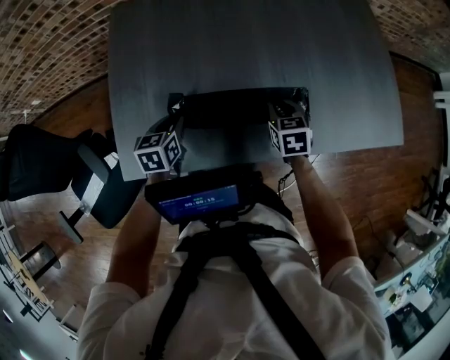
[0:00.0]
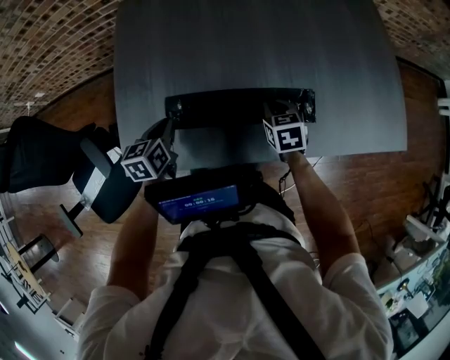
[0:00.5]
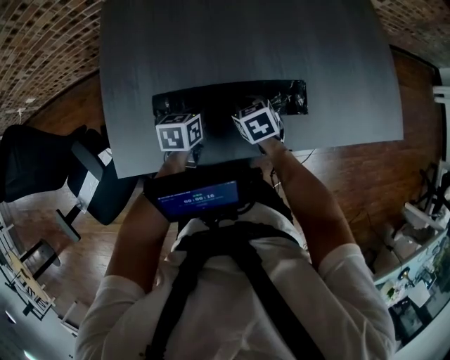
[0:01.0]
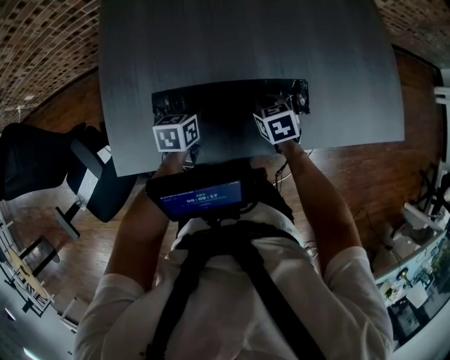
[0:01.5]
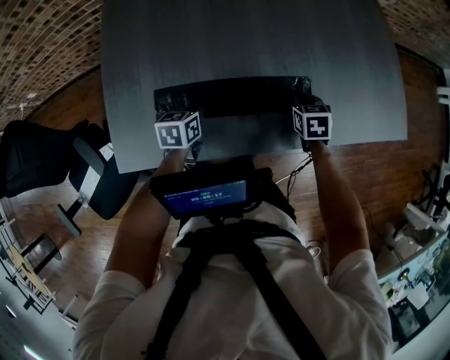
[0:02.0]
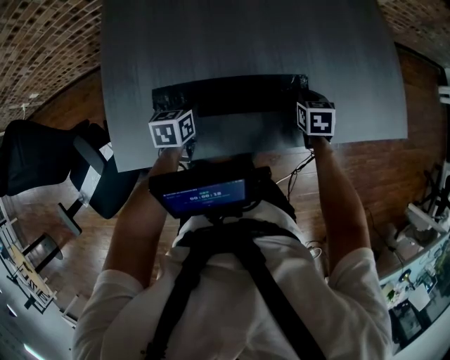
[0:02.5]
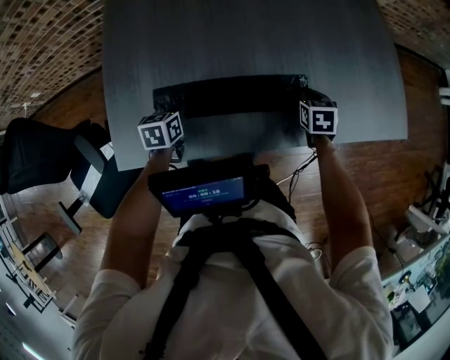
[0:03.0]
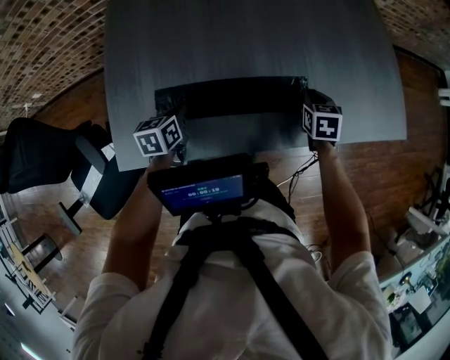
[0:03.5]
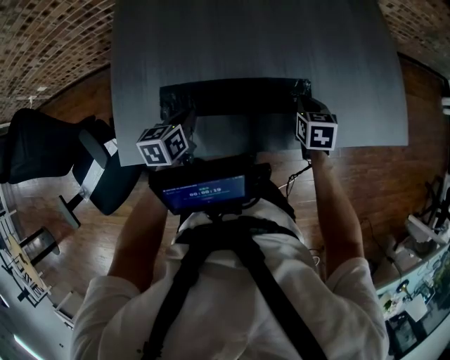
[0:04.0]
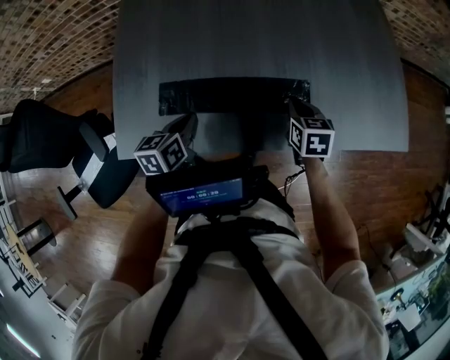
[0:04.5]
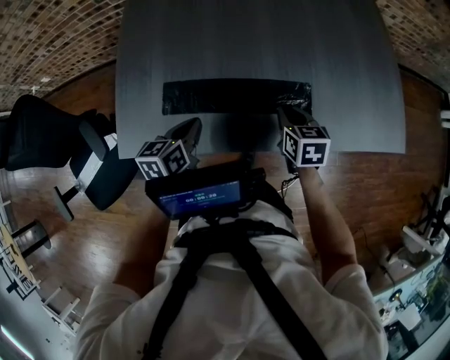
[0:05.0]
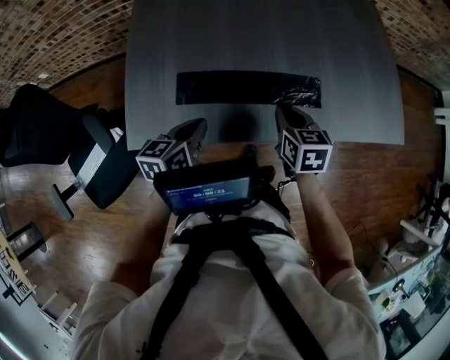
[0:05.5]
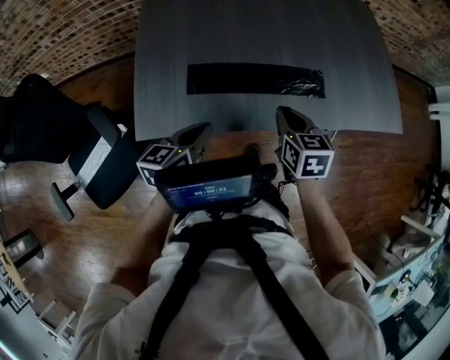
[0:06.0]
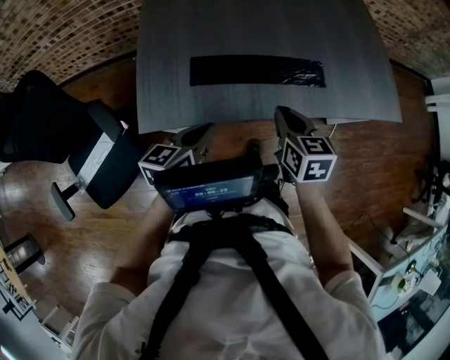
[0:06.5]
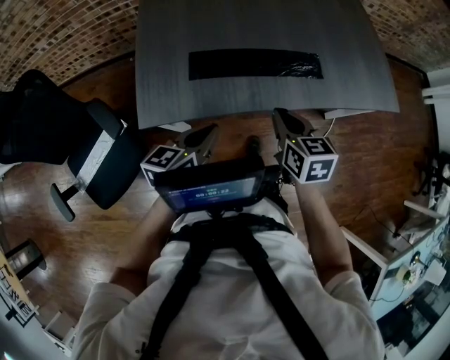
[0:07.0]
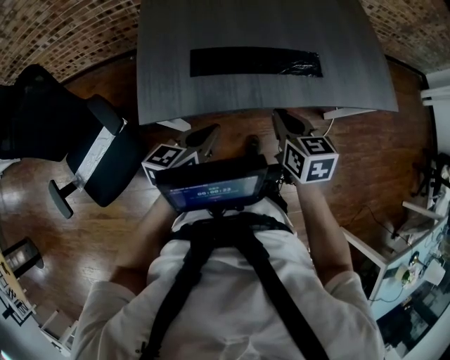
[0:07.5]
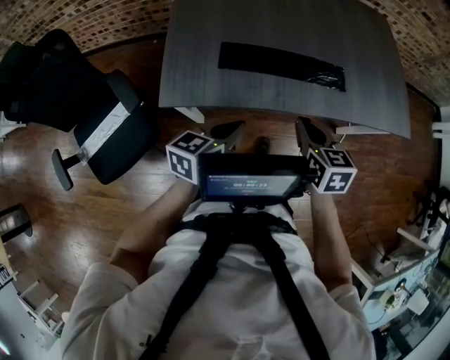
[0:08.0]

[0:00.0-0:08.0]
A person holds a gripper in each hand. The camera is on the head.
0:00.0 to 0:02.0: The two grippers go about 10 cm to the right and downward. The left gripper closes its fingers.
0:02.0 to 0:04.0: The left gripper moves upward, about 5 cm.
0:04.0 to 0:06.0: The left gripper heads backward and upward, covering about 20 cm; the right gripper is displaced to the left, backward and upward by roughly 25 cm.
0:06.0 to 0:08.0: Both grippers travel together backward, some 10 cm.

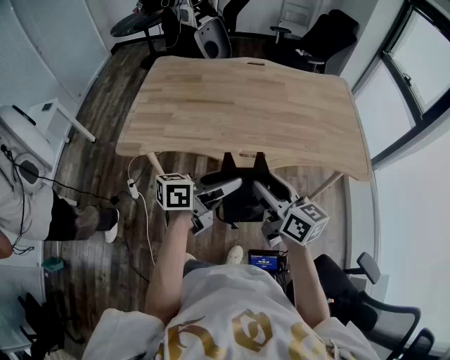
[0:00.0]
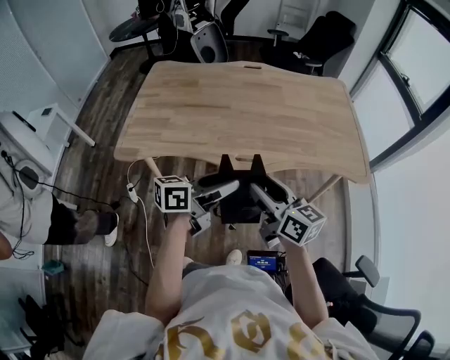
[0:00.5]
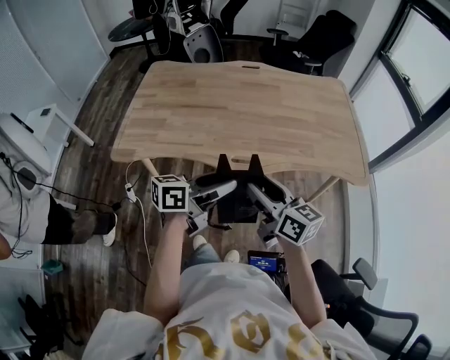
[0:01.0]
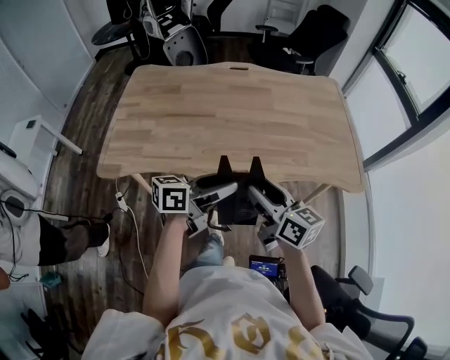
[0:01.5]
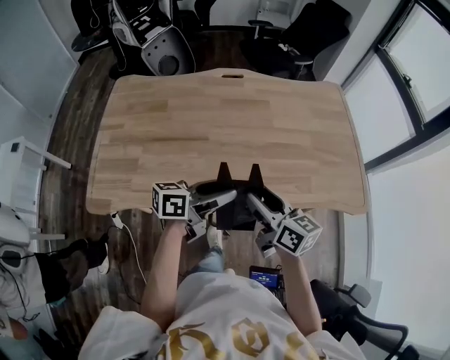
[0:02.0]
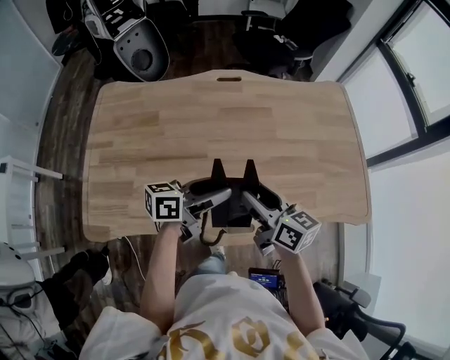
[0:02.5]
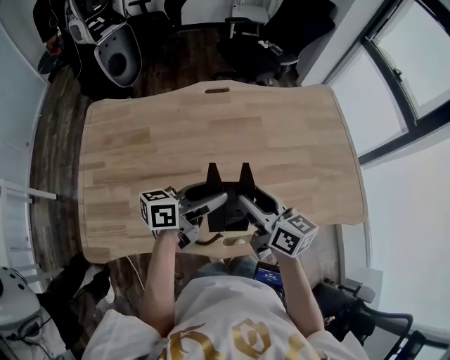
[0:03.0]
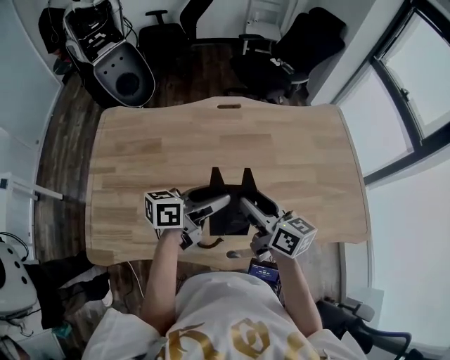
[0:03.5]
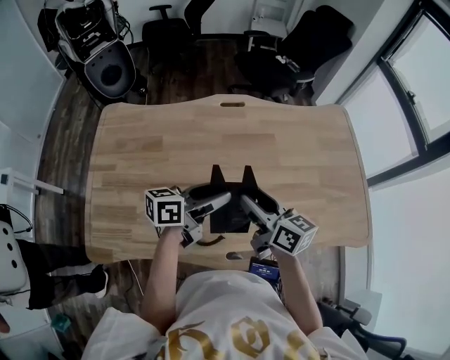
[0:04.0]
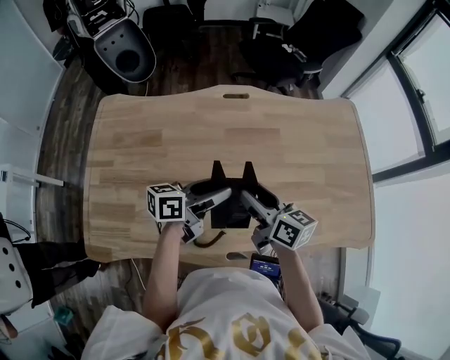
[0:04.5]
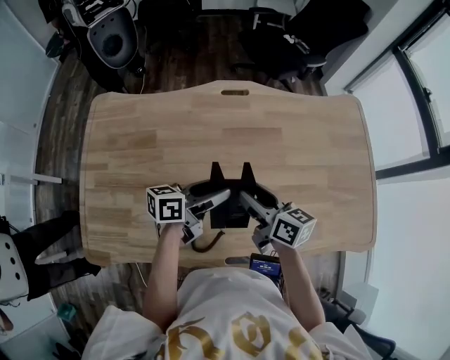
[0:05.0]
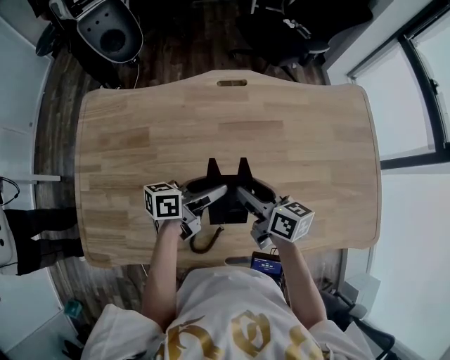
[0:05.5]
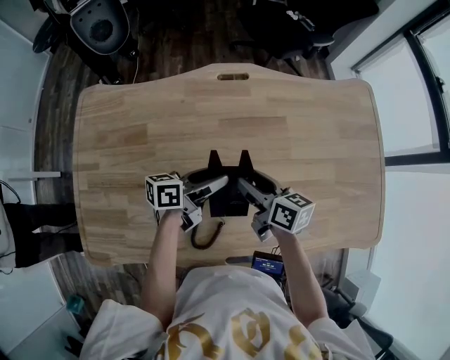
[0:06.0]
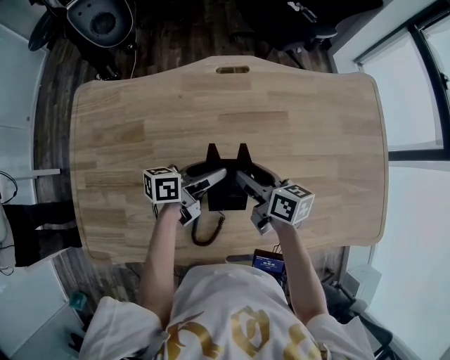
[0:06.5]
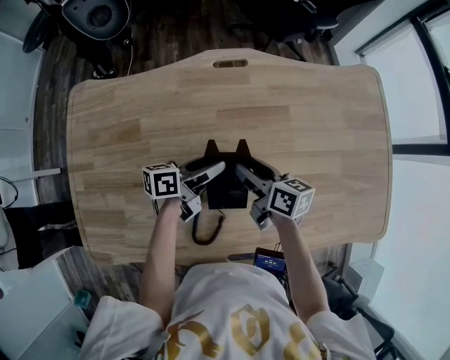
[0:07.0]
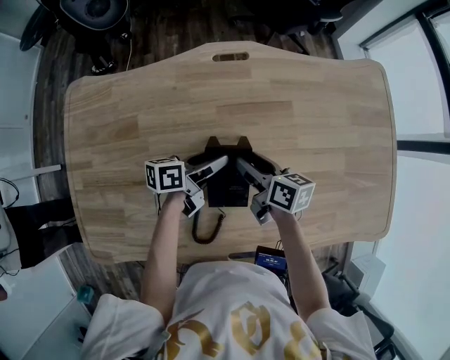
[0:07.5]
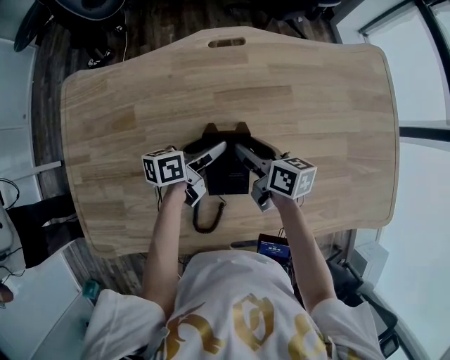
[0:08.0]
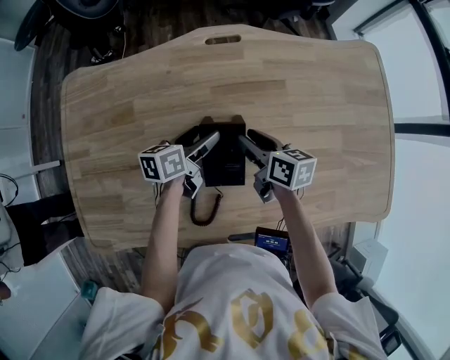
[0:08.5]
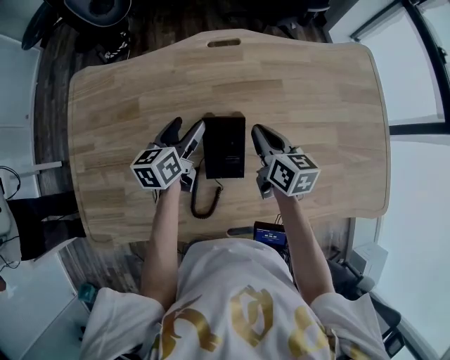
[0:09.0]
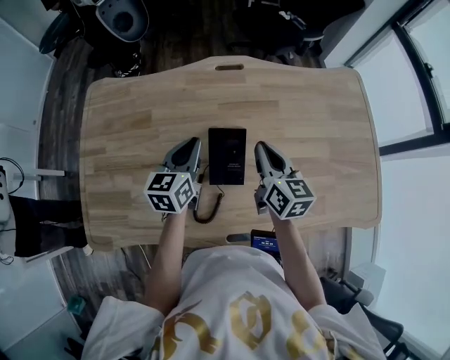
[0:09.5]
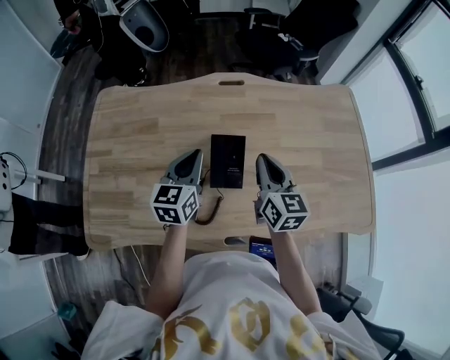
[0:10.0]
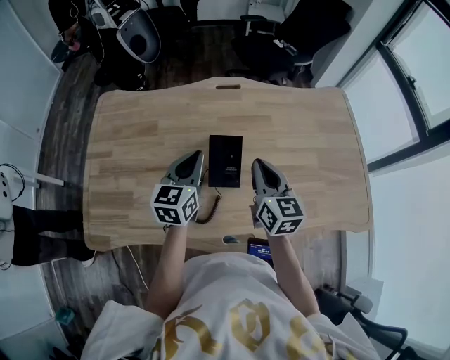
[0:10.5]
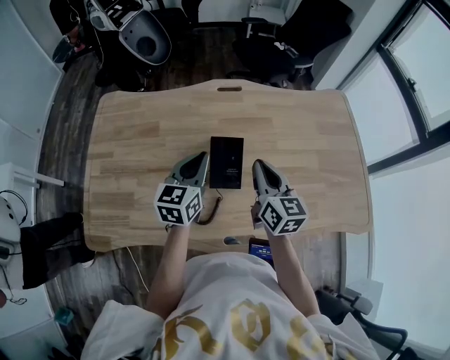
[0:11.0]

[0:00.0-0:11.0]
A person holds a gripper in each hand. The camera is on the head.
0:00.0 to 0:02.0: The two grippers go about 25 cm forward.
0:02.0 to 0:03.5: Both grippers travel together forward and to the left, about 20 cm.
0:03.5 to 0:05.5: The grippers both shift forward and downward by approximately 15 cm.
0:05.5 to 0:07.5: The grippers both shift downward and forward by roughly 10 cm.
0:07.5 to 0:09.0: The left gripper is displaced upward and to the left by some 10 cm, and turns by roughly 40 degrees, while the right gripper goes roughly 5 cm upward, turns by roughly 20 degrees, and closes its fingers.
0:09.0 to 0:11.0: Both grippers move upward and backward, roughly 20 cm. The left gripper turns by some 20 degrees, and closes; the right gripper turns by roughly 20 degrees.

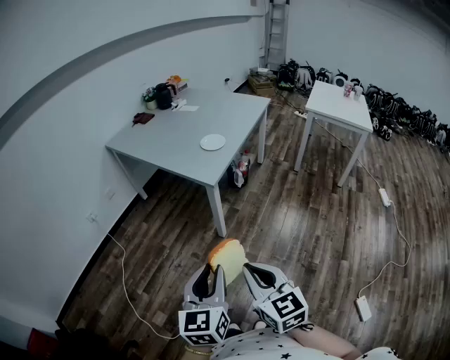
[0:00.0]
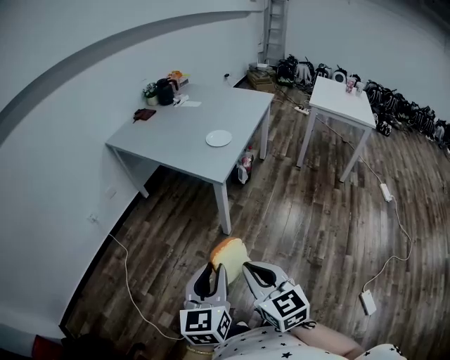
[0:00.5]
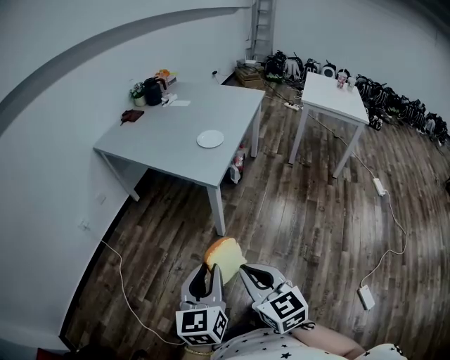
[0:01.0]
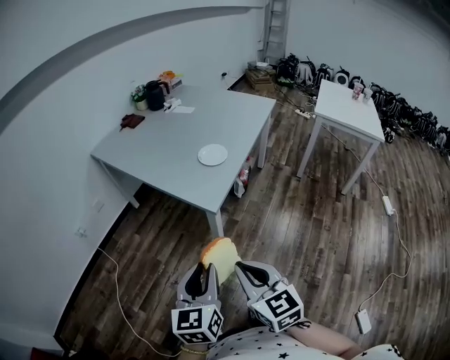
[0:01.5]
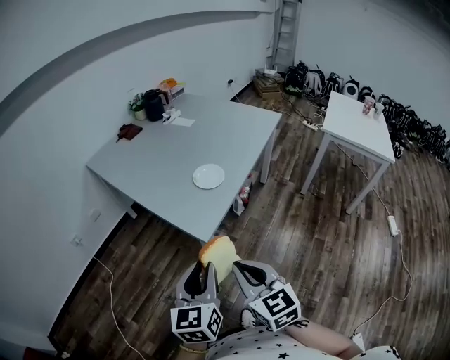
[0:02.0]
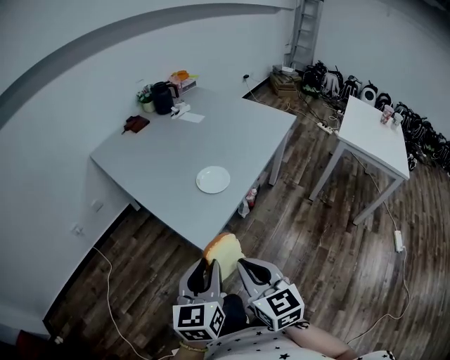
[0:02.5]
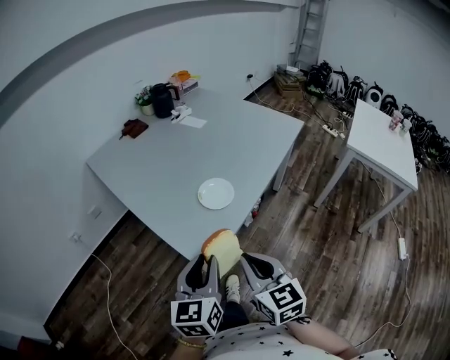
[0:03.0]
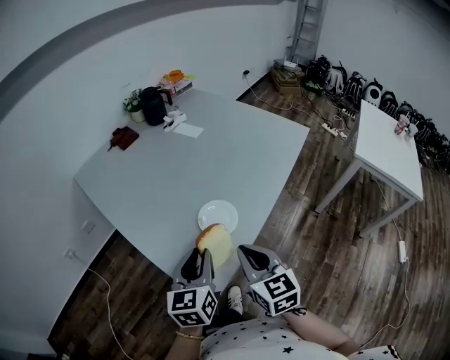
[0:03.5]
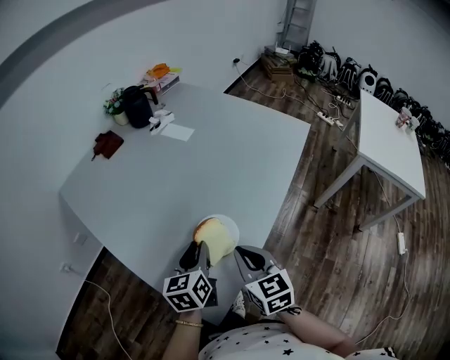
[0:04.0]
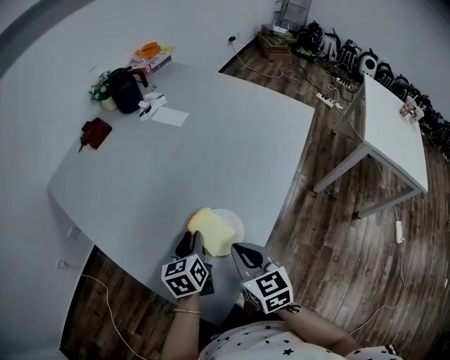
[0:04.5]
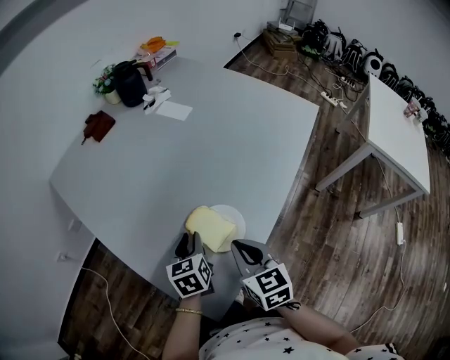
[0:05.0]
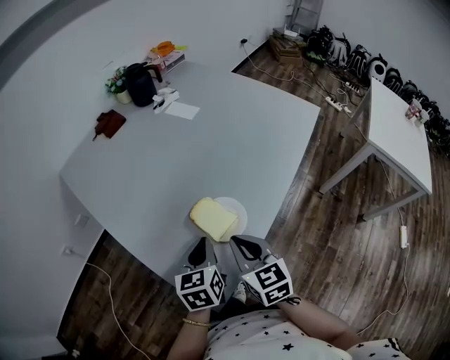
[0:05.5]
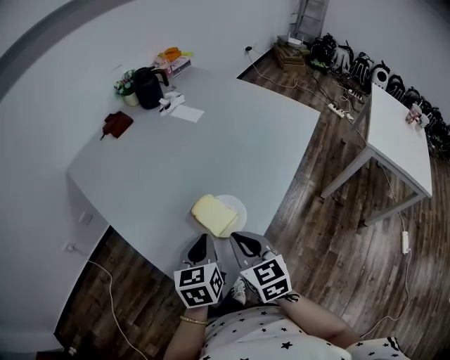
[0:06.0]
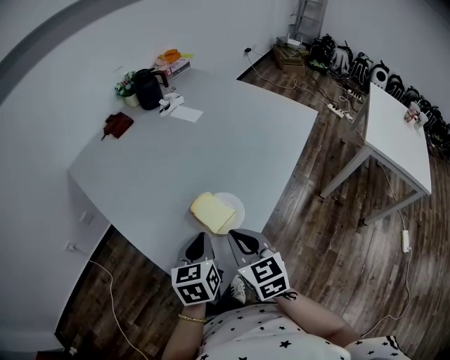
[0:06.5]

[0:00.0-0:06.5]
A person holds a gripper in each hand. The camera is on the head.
0:00.0 to 0:02.0: The grippers both shift forward by about 30 cm.
0:02.0 to 0:04.5: Both grippers are carried forward, about 40 cm. The left gripper swivels approximately 20 degrees.
0:04.5 to 0:06.5: The left gripper goes about 15 cm backward and upward, and closes its fingers. The right gripper ends up about 5 cm from where it was.

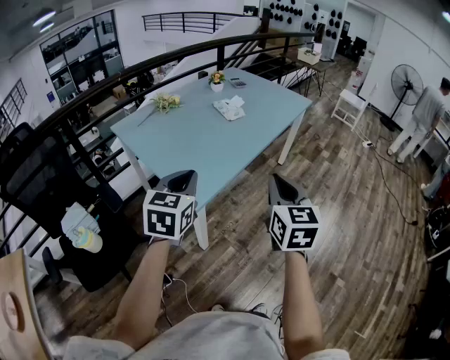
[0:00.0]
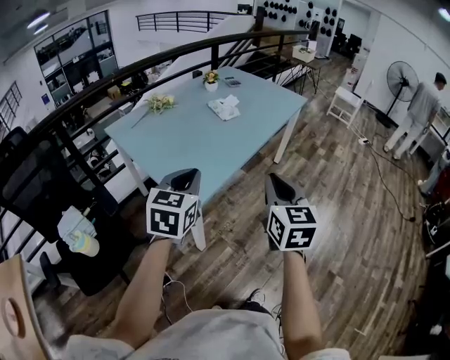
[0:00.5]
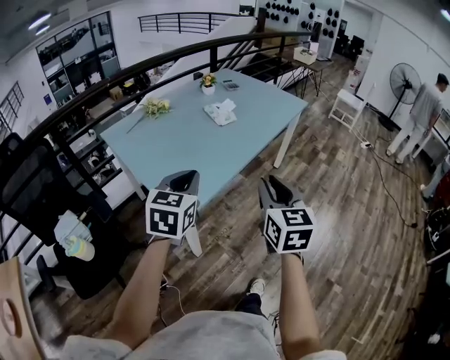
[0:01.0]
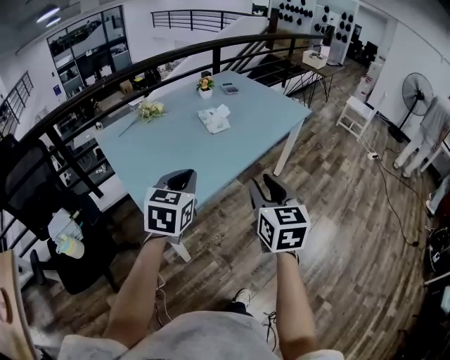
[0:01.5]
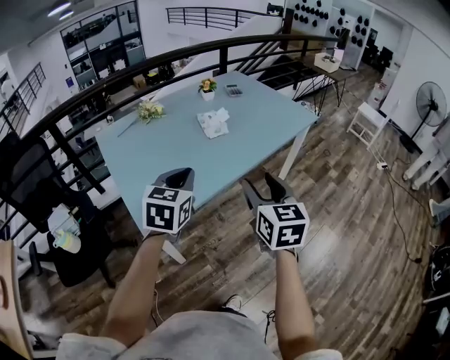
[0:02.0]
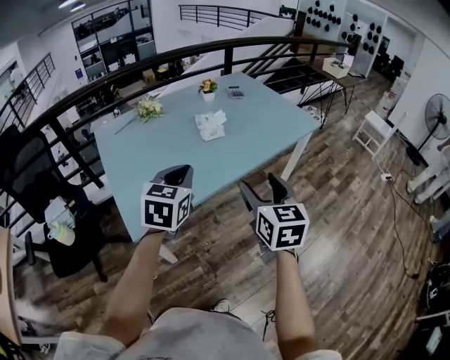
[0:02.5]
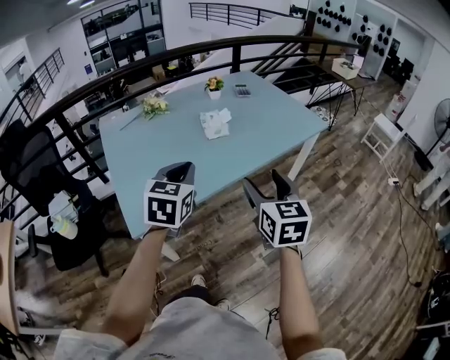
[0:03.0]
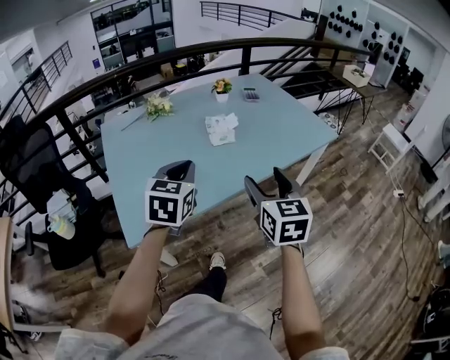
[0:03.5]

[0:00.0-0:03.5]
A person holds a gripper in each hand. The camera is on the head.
0:00.0 to 0:02.0: The grippers both shift forward and to the right by roughly 25 cm. The right gripper opens.
0:02.0 to 0:03.5: The two grippers go roughly 10 cm forward.
